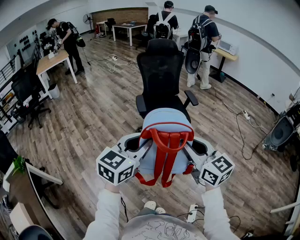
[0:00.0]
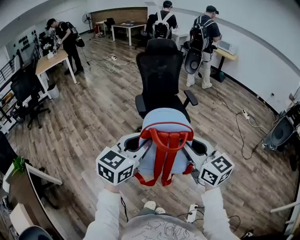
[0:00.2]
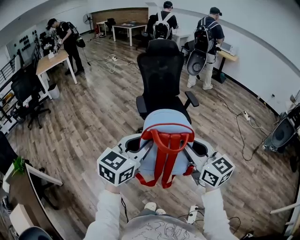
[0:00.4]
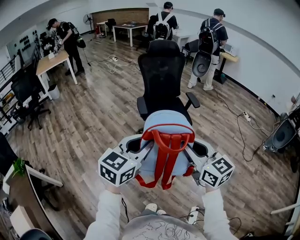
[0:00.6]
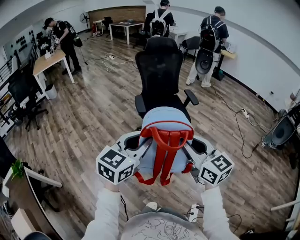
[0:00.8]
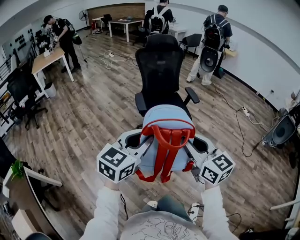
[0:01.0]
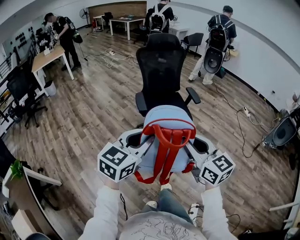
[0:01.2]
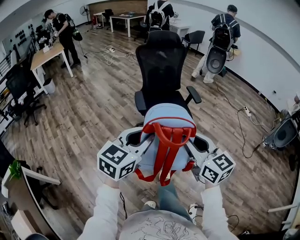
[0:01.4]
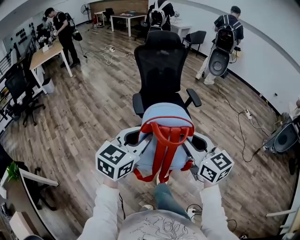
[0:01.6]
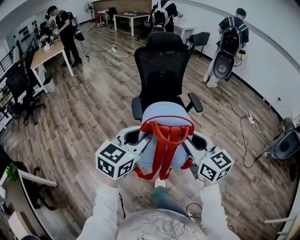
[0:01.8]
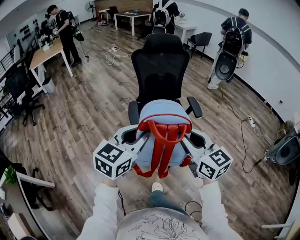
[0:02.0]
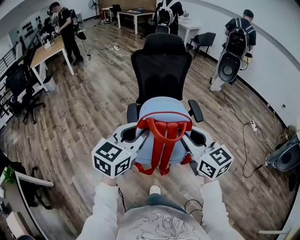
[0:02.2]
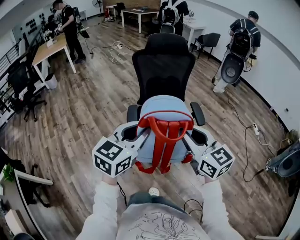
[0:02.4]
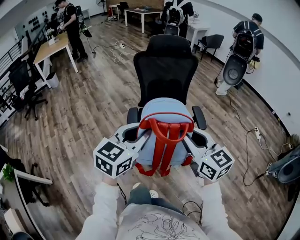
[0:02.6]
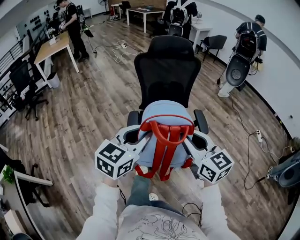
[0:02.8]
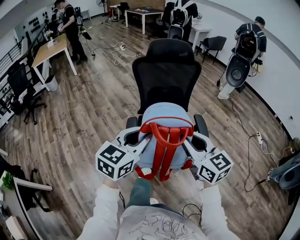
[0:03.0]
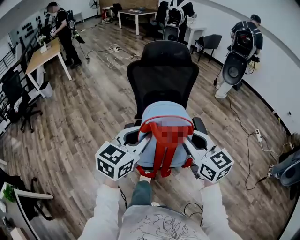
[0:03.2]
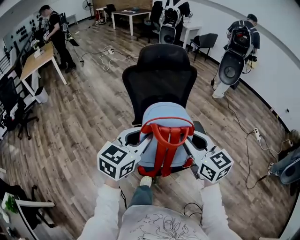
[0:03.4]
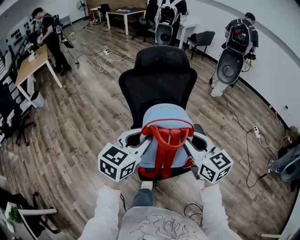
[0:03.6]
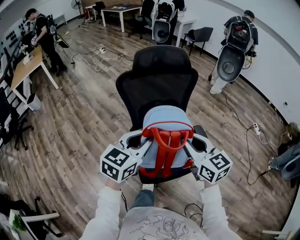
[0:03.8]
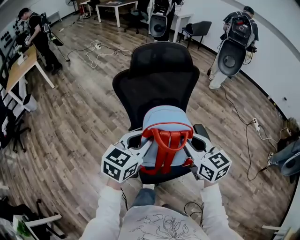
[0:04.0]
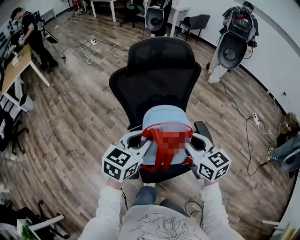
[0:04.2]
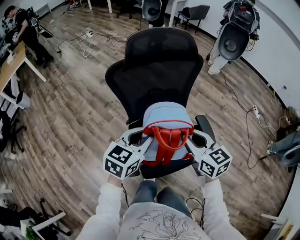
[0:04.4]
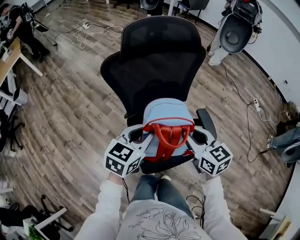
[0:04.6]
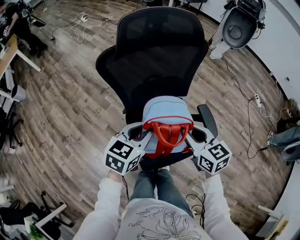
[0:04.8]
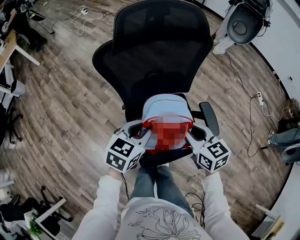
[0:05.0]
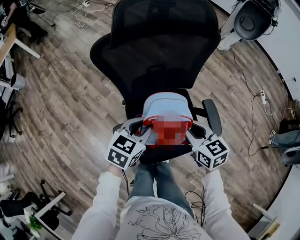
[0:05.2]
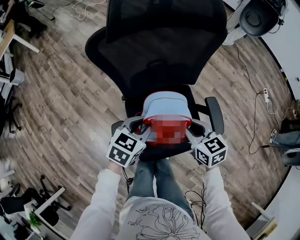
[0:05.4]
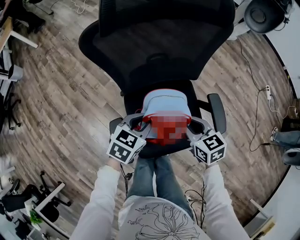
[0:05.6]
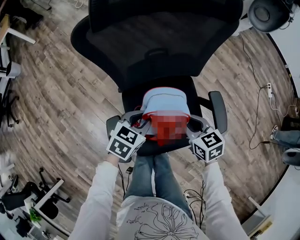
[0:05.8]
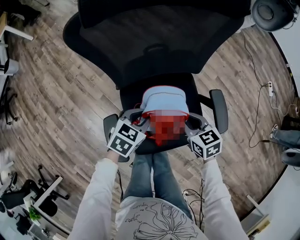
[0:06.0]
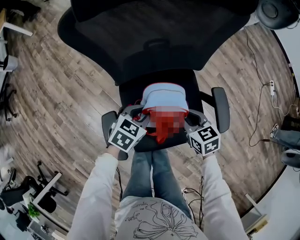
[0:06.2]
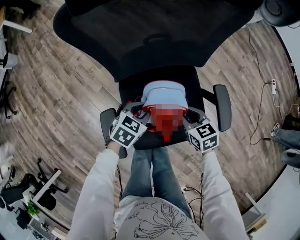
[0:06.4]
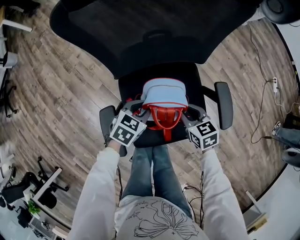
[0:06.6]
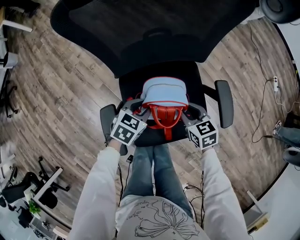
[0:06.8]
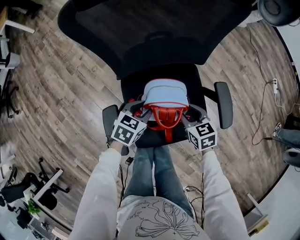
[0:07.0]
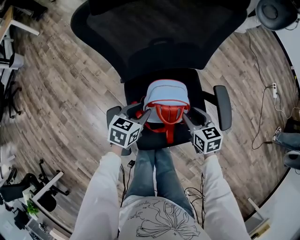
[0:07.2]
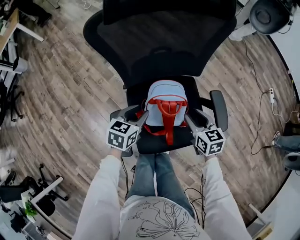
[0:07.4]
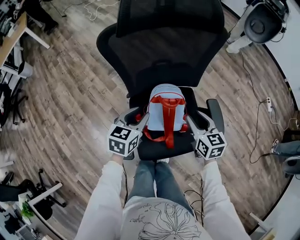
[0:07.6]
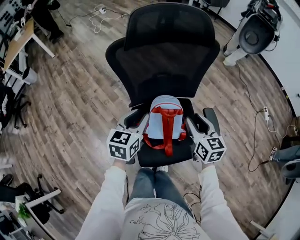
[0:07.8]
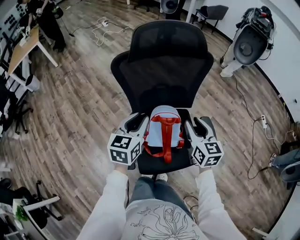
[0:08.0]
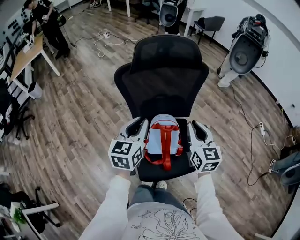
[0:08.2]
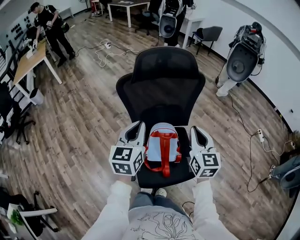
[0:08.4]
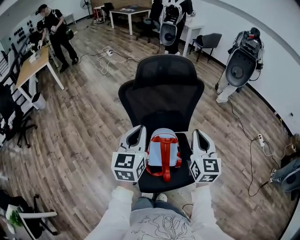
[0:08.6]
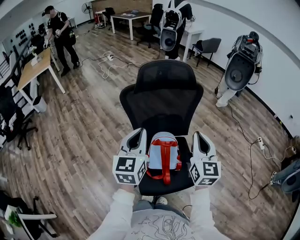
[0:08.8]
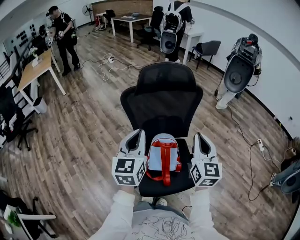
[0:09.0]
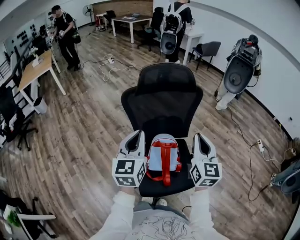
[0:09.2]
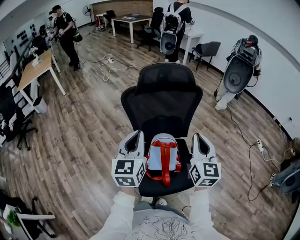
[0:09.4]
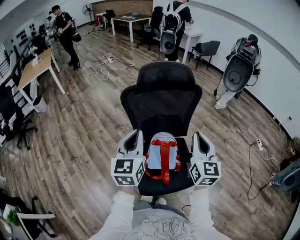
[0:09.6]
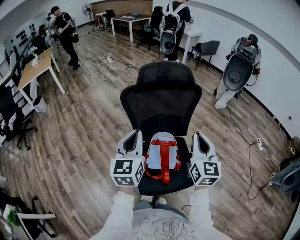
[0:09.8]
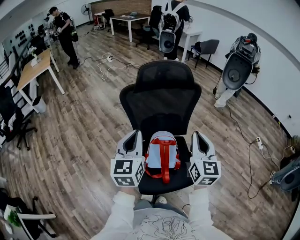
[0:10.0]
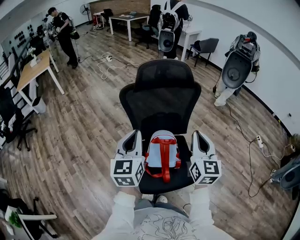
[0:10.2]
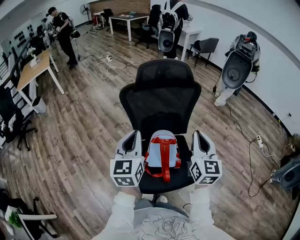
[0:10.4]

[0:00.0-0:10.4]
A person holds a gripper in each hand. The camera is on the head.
0:00.0 to 0:01.4: The grippers both shift forward by approximately 10 cm.
0:01.4 to 0:03.0: Both grippers travel together forward, some 40 cm.
0:03.0 to 0:04.4: The two grippers go about 30 cm forward and downward.
0:04.4 to 0:06.0: The two grippers go approximately 25 cm downward. The right gripper turns by approximately 30 degrees, while the left gripper turns by approximately 20 degrees.
0:06.0 to 0:07.4: The right gripper moves roughly 5 cm downward and comes back, and opens up, while the left gripper moves roughly 5 cm downward and comes back.
0:07.4 to 0:09.0: The grippers both shift upward by some 35 cm. The left gripper angles its fingers upward, by roughly 40 degrees, and closes. The right gripper tilts its fingers some 40 degrees upward, and closes up.
0:09.0 to 0:10.4: There are only small adjustments of the grippers.

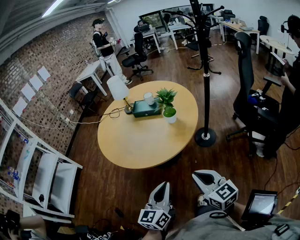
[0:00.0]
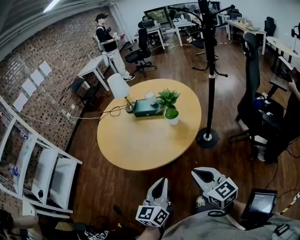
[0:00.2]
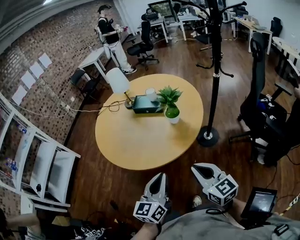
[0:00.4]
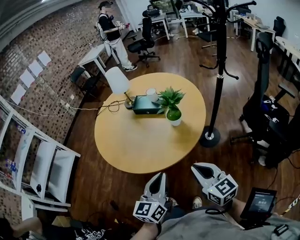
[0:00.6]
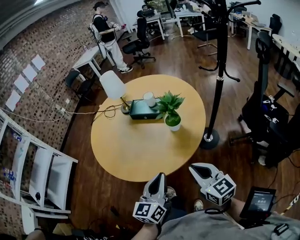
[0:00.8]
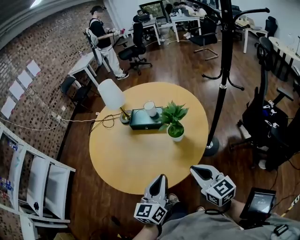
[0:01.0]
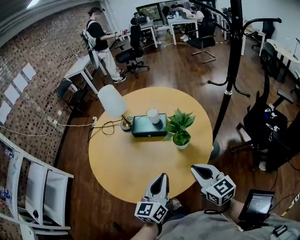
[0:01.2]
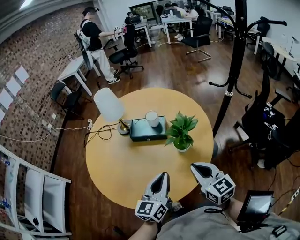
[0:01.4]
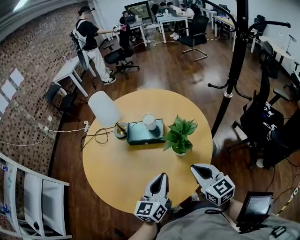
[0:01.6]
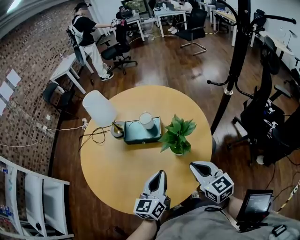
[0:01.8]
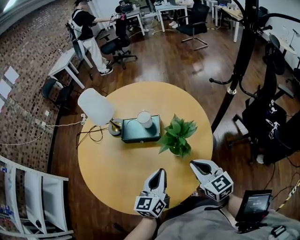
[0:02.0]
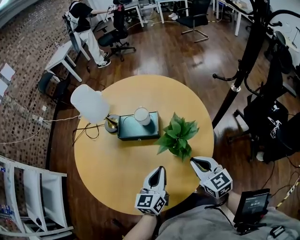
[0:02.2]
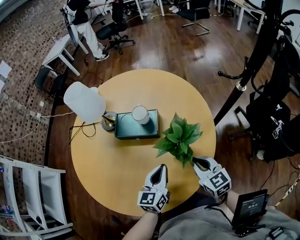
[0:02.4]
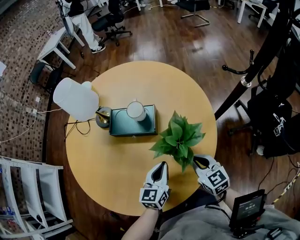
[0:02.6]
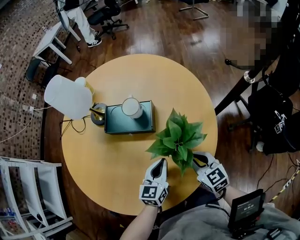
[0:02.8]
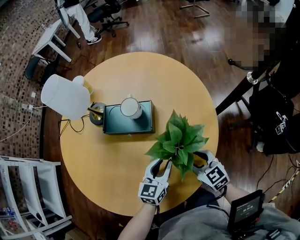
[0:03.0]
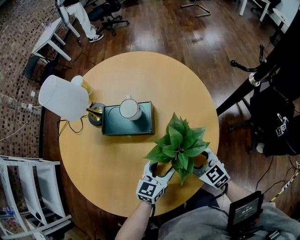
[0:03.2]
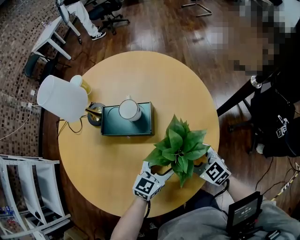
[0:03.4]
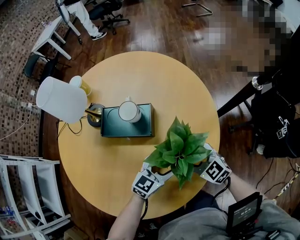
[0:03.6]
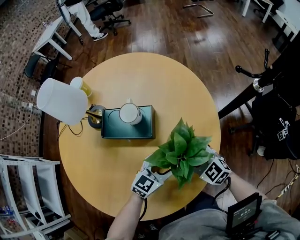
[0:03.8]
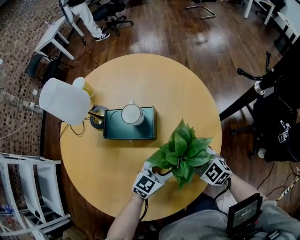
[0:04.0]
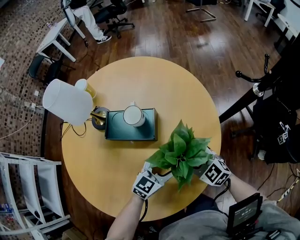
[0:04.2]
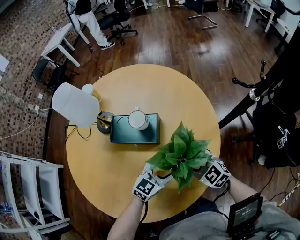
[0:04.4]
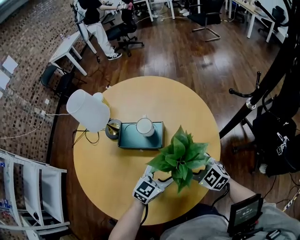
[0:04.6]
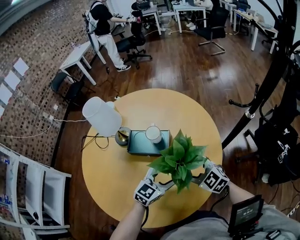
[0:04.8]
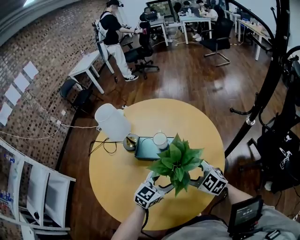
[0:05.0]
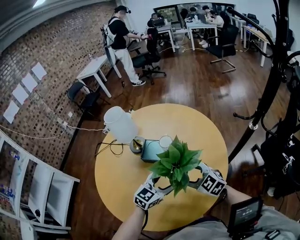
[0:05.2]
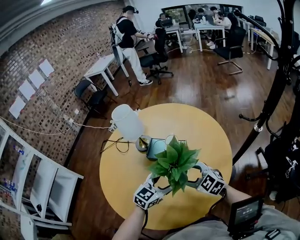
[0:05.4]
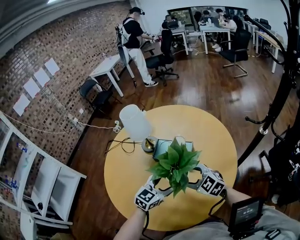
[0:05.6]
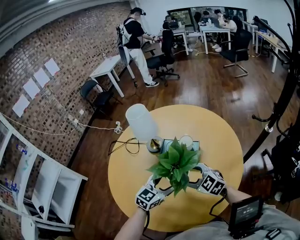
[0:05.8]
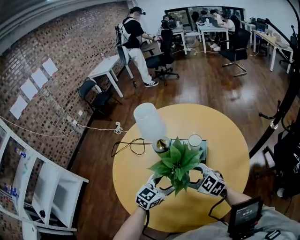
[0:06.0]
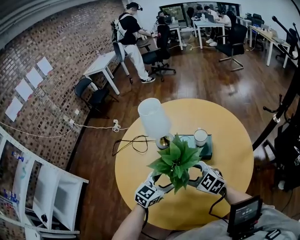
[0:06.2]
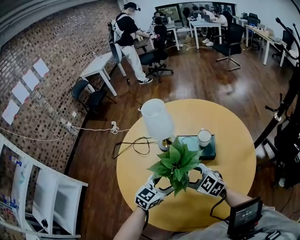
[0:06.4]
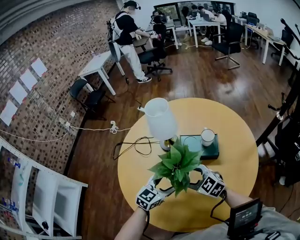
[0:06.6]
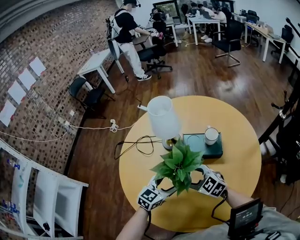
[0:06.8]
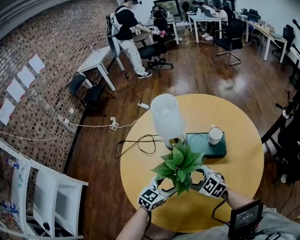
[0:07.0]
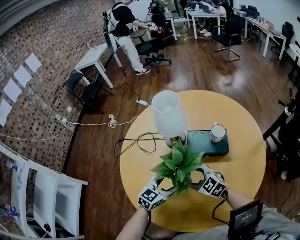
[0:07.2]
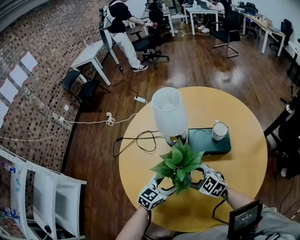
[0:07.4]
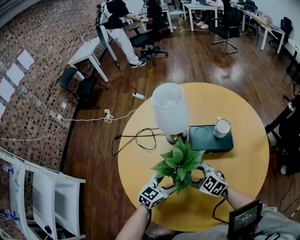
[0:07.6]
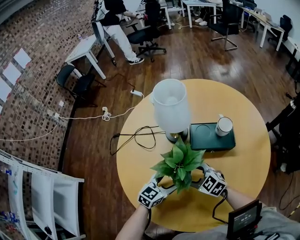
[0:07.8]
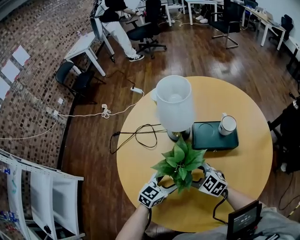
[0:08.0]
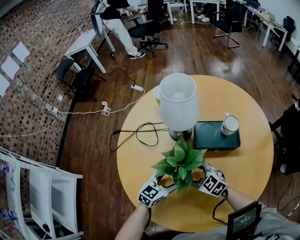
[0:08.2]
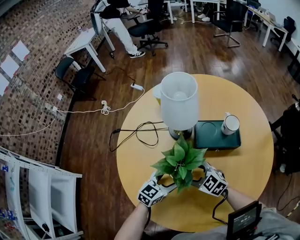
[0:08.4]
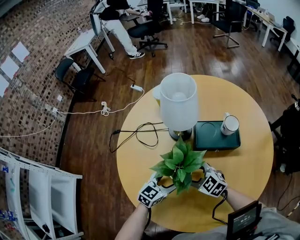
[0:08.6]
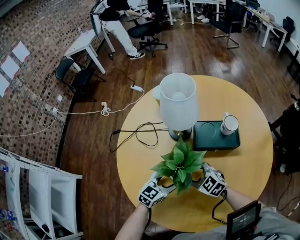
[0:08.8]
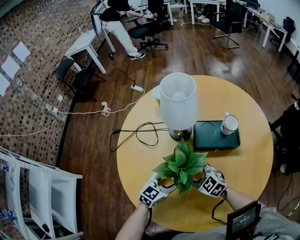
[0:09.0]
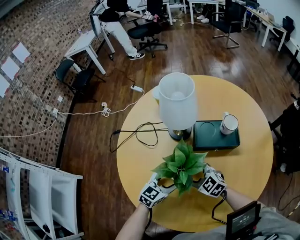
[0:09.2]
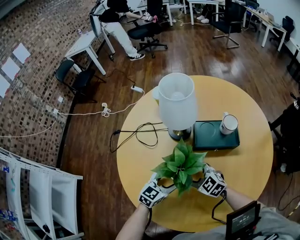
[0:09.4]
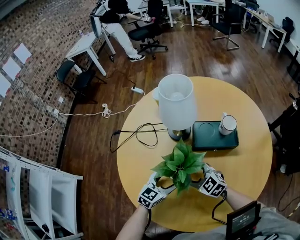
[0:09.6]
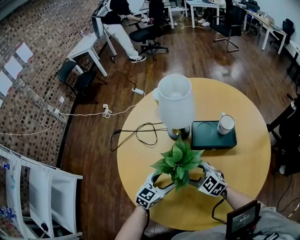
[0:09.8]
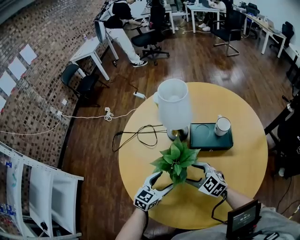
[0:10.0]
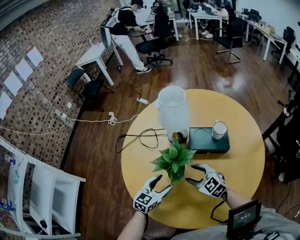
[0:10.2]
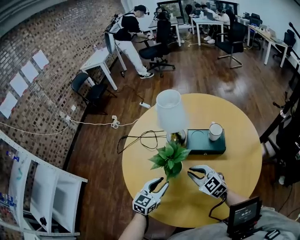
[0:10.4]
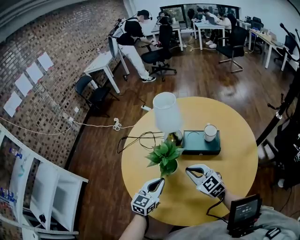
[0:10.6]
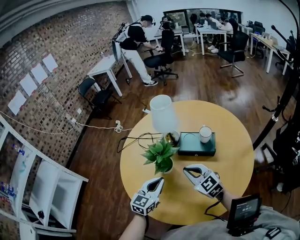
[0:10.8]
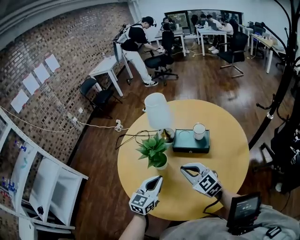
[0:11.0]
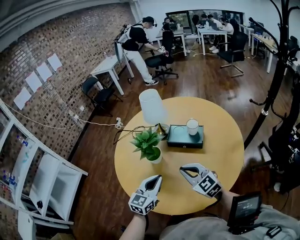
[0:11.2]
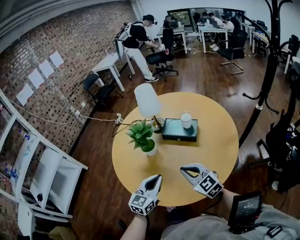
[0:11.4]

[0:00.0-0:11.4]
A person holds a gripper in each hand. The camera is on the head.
0:00.0 to 0:01.4: The grippers both shift forward by roughly 40 cm.
0:01.4 to 0:02.8: Both grippers travel together downward and forward, some 25 cm.
0:02.8 to 0:04.2: The left gripper shifts by approximately 5 cm, rotates some 30 degrees, and opens its fingers; the right gripper shifts by roughly 5 cm, rotates some 30 degrees, and opens.
0:04.2 to 0:05.6: The grippers both shift upward and to the left by about 15 cm.
0:05.6 to 0:07.2: Both grippers travel together to the left, approximately 25 cm.
0:07.2 to 0:08.6: Both grippers move downward, roughly 10 cm.
0:08.6 to 0:10.0: The right gripper shifts by approximately 5 cm. Meanwhile the left gripper changes place by approximately 5 cm.
0:10.0 to 0:11.4: The two grippers go approximately 30 cm backward, to the right and upward. The left gripper changes its angle by approximately 30 degrees, and closes up, while the right gripper closes.

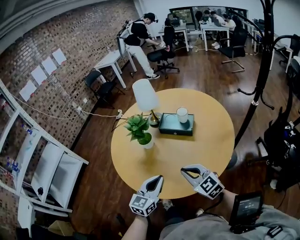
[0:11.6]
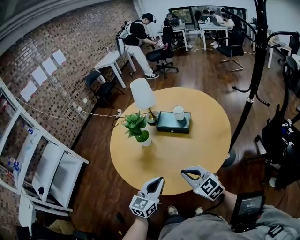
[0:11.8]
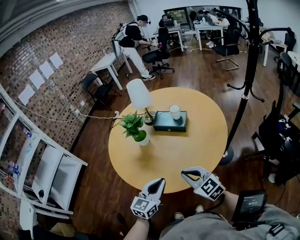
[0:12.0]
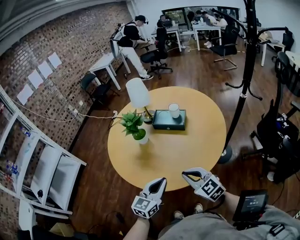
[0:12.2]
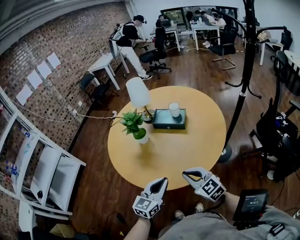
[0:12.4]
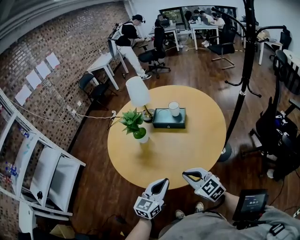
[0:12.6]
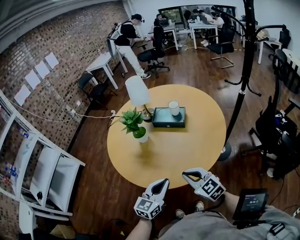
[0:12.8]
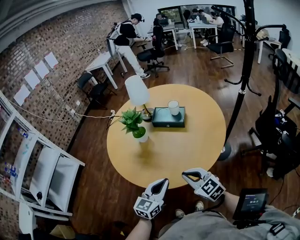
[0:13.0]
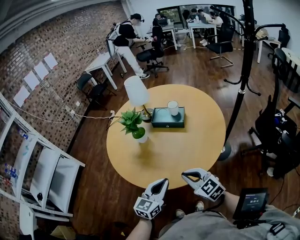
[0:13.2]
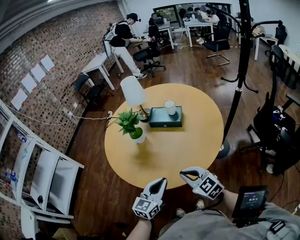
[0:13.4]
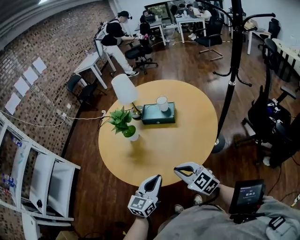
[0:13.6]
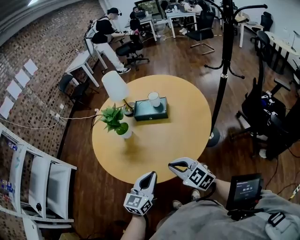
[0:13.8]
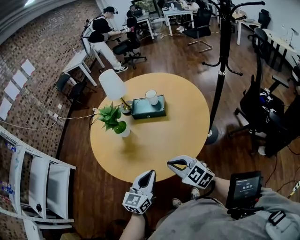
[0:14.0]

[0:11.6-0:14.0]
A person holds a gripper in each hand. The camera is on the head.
0:11.6 to 0:12.8: Both grippers move backward, approximately 10 cm.
0:12.8 to 0:14.0: Both grippers stay put.
